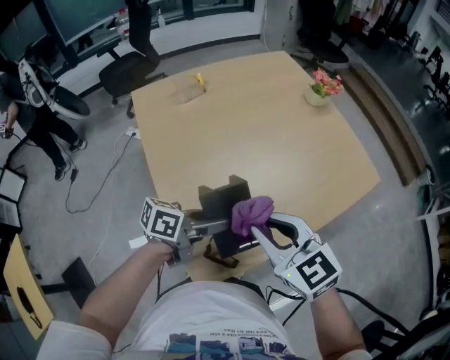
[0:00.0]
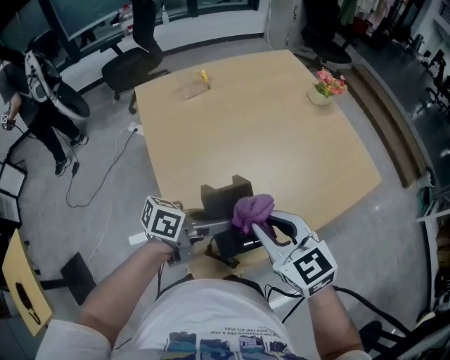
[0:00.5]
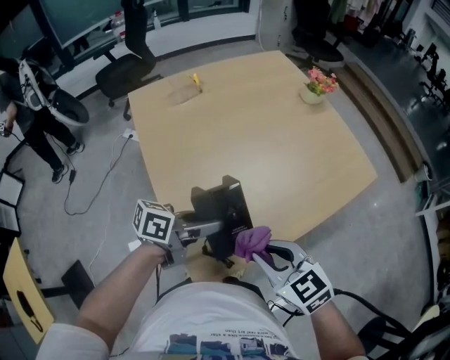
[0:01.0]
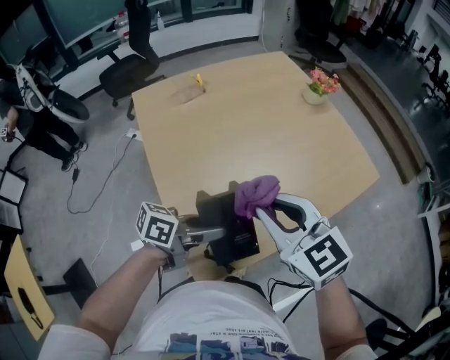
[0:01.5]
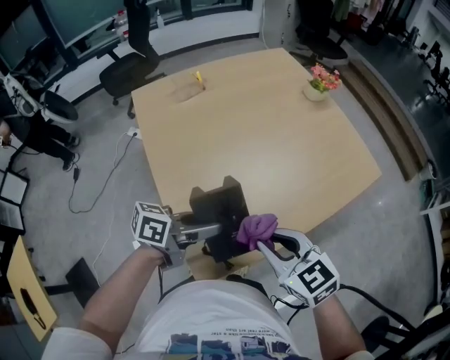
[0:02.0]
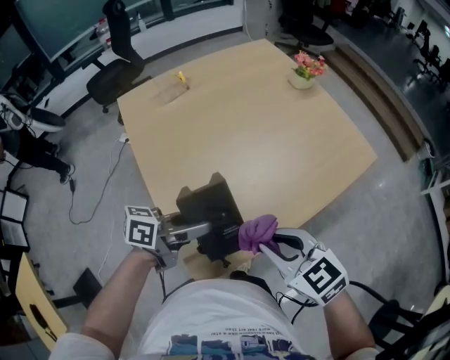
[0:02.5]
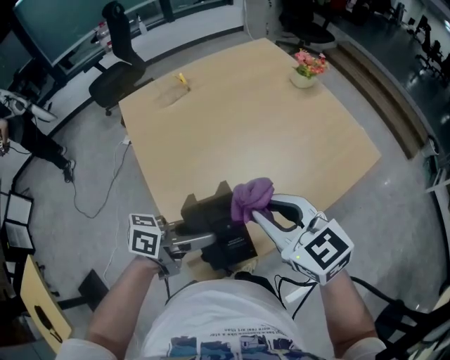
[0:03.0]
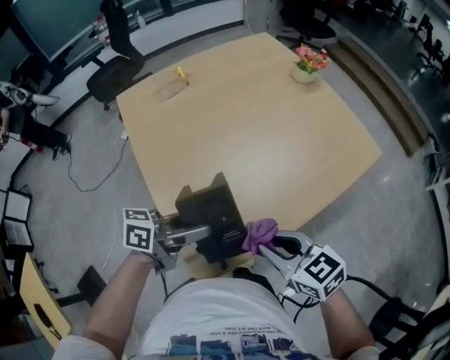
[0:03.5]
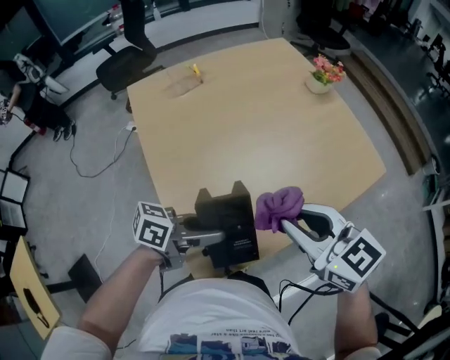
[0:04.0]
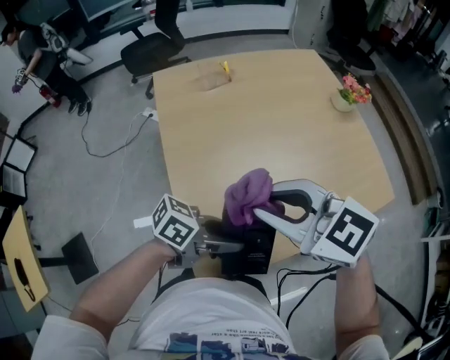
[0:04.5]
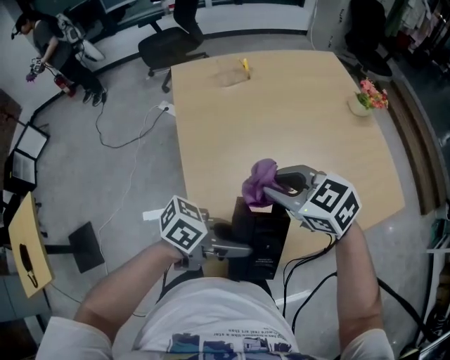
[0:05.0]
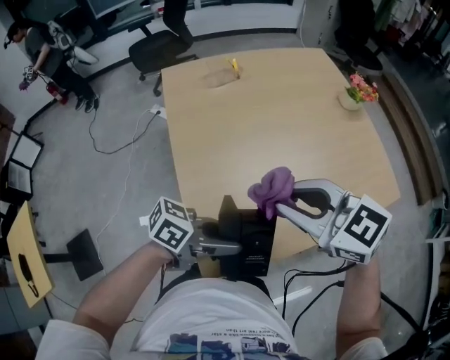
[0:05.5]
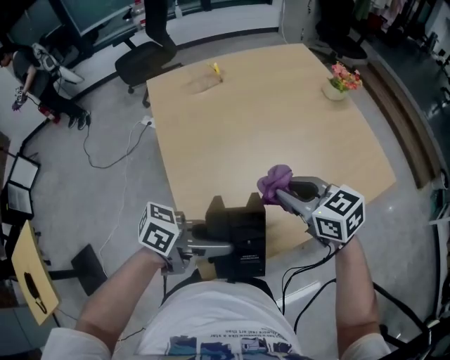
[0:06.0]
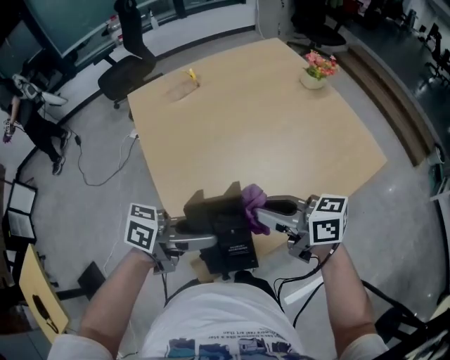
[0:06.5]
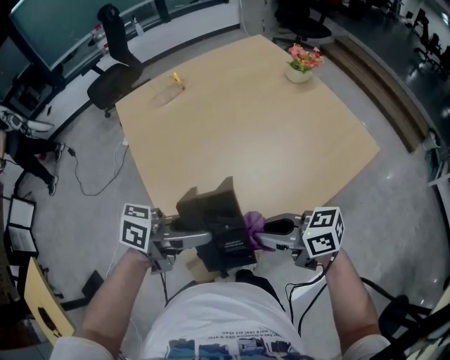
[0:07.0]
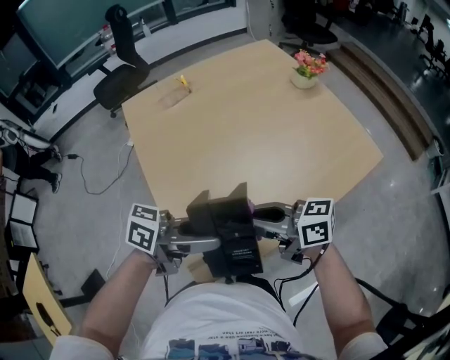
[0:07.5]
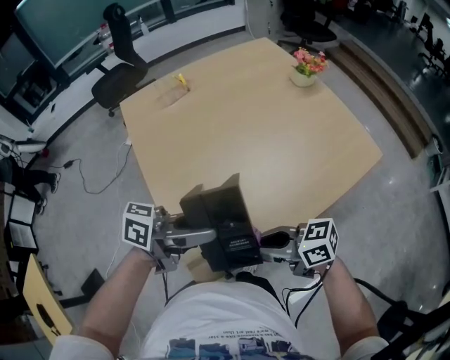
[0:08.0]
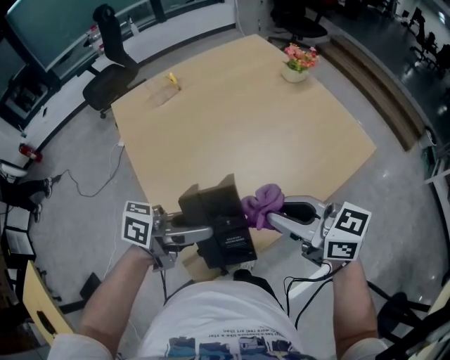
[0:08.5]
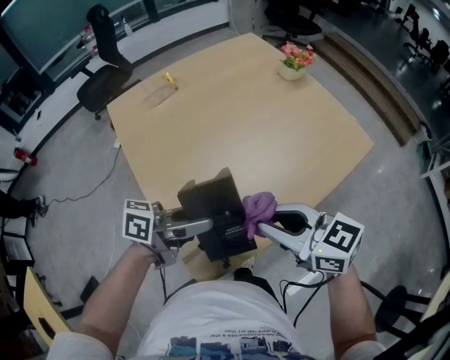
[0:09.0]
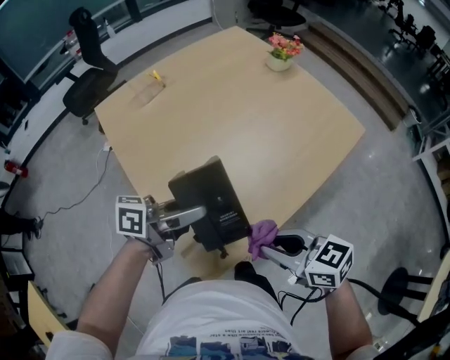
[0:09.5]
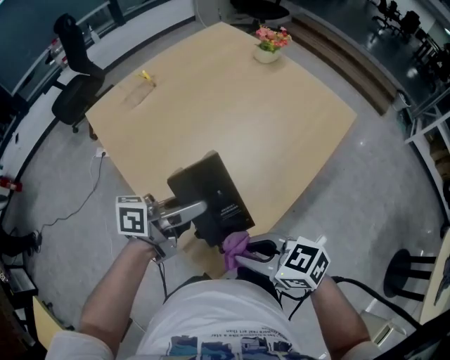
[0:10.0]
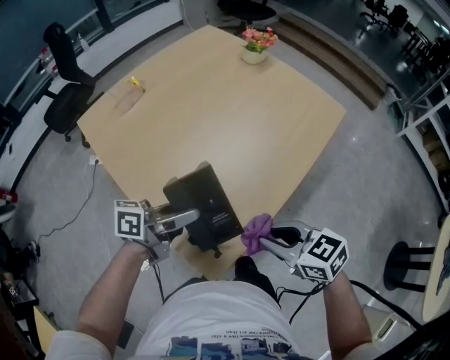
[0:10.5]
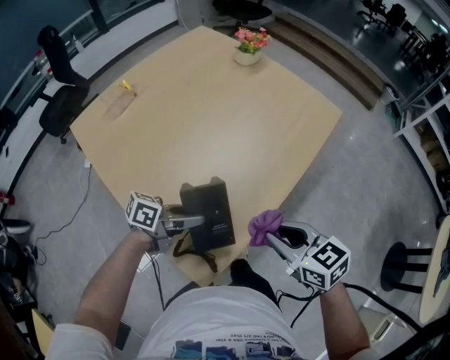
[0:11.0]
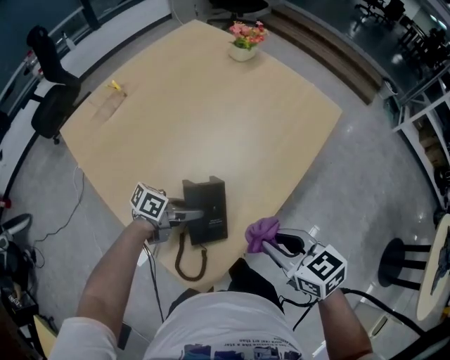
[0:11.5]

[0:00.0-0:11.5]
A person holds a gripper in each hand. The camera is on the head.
0:00.0 to 0:02.0: The right gripper swings up and down, about 10 cm each way, with 2 reversals.
0:02.0 to 0:04.0: The right gripper swings up and down, some 10 cm each way, with 2 reversals.
0:04.0 to 0:06.0: The right gripper moves up and down over roughly 10 cm, changing direction 2 times.
0:06.0 to 0:07.5: The right gripper changes its angle by roughly 40 degrees.
0:07.5 to 0:09.5: The right gripper moves up and down over about 10 cm, changing direction 2 times, and rotates roughly 30 degrees. Meanwhile the left gripper shifts by roughly 5 cm.
0:09.5 to 0:11.5: The left gripper goes some 20 cm downward, and swivels roughly 30 degrees; the right gripper changes its angle by some 20 degrees.

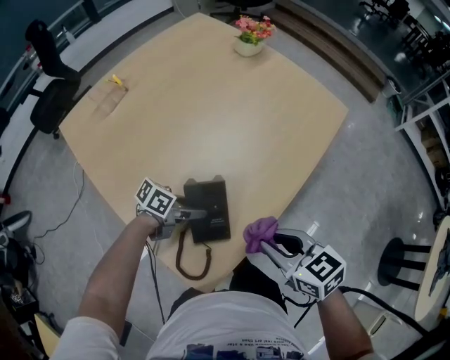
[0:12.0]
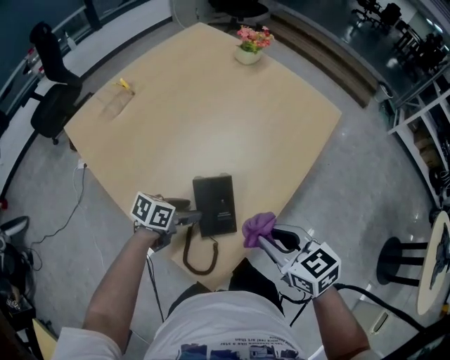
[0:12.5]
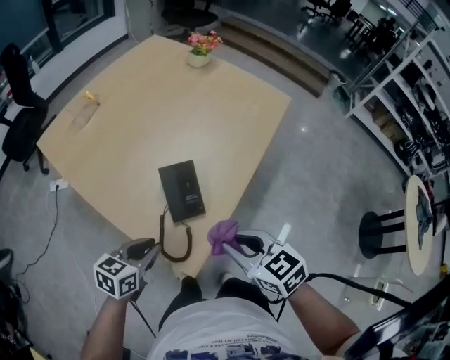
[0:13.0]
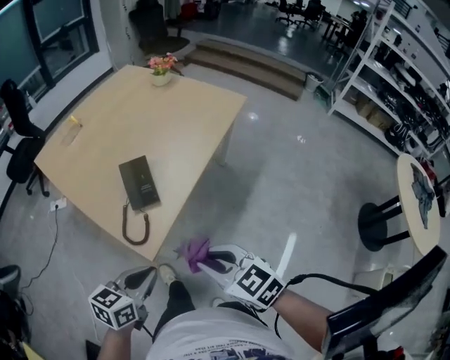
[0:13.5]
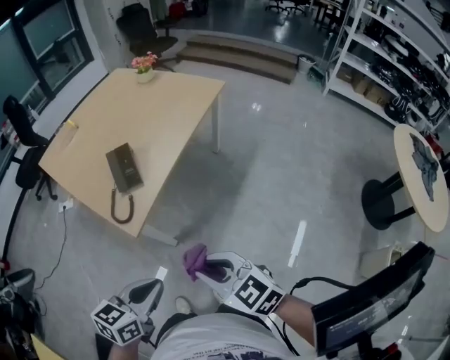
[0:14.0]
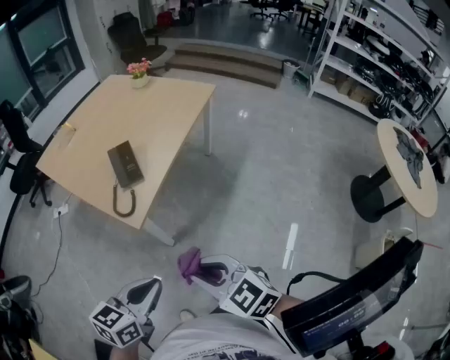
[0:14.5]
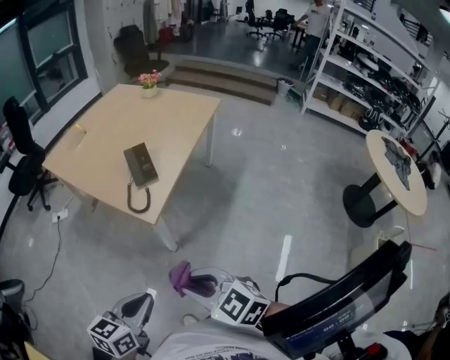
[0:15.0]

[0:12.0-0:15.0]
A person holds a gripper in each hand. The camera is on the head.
0:12.0 to 0:13.5: The right gripper changes place by roughly 20 cm, while the left gripper shifts by about 30 cm, turns by some 40 degrees, and closes up.
0:13.5 to 0:15.0: The left gripper moves backward, roughly 20 cm. Meanwhile the right gripper heads backward and to the left, covering roughly 20 cm.

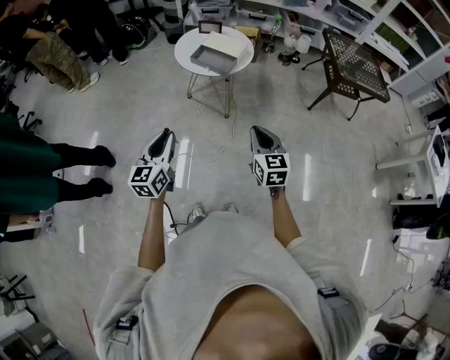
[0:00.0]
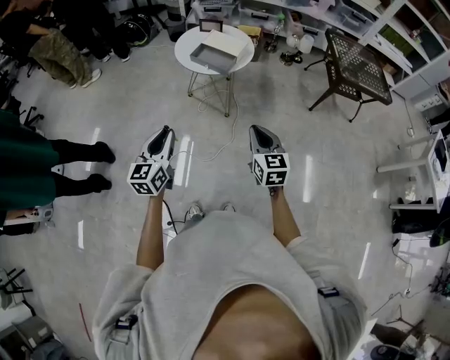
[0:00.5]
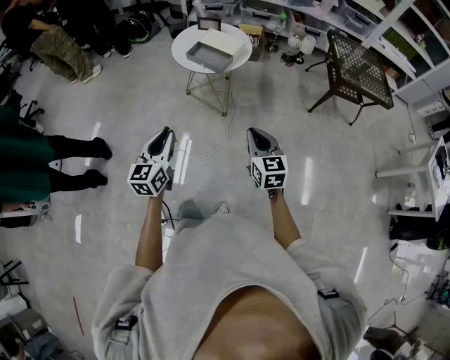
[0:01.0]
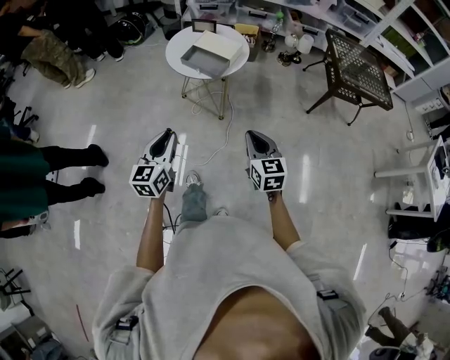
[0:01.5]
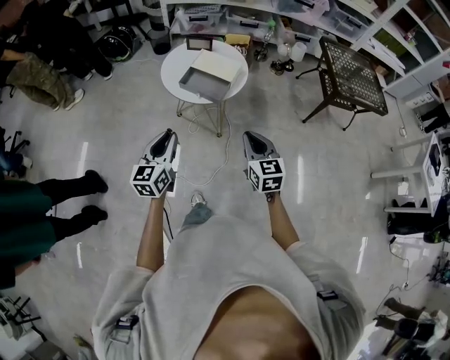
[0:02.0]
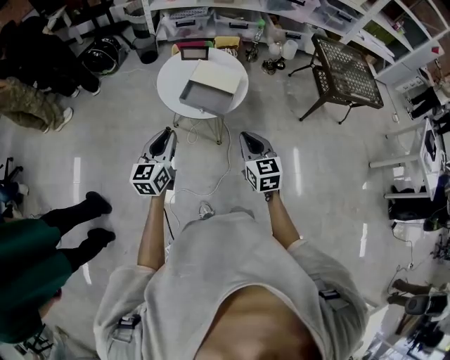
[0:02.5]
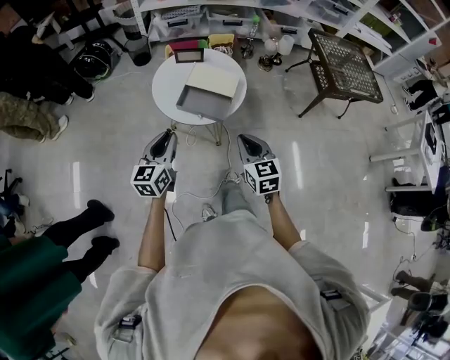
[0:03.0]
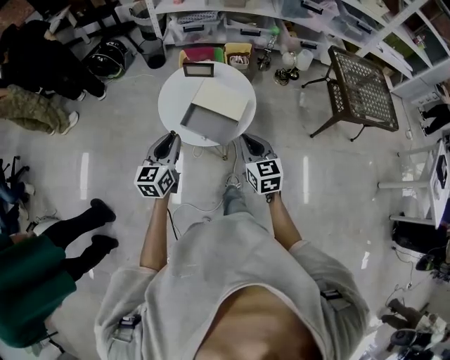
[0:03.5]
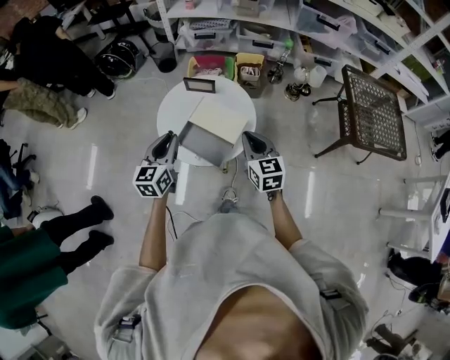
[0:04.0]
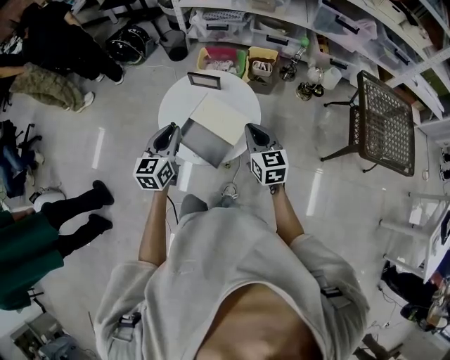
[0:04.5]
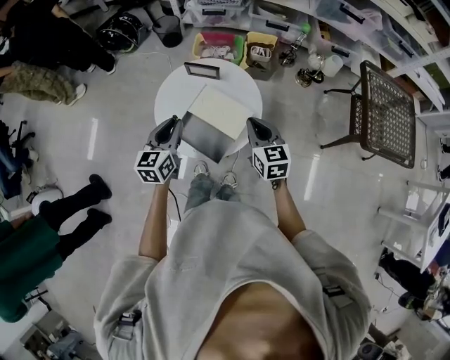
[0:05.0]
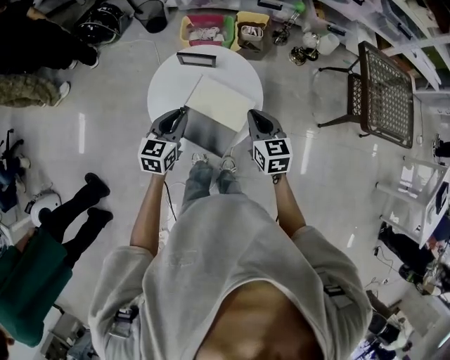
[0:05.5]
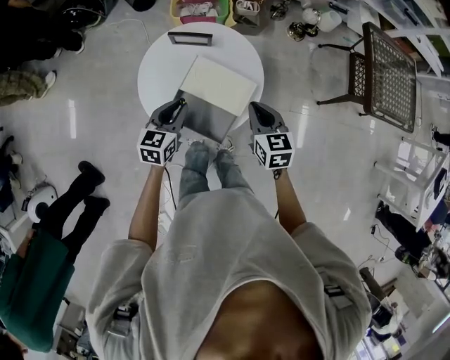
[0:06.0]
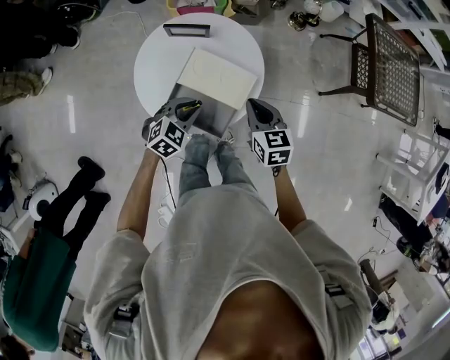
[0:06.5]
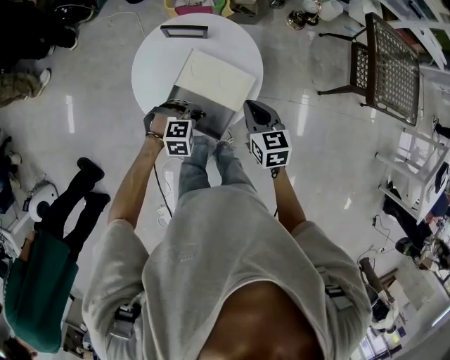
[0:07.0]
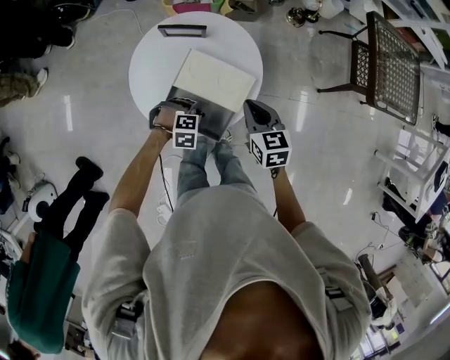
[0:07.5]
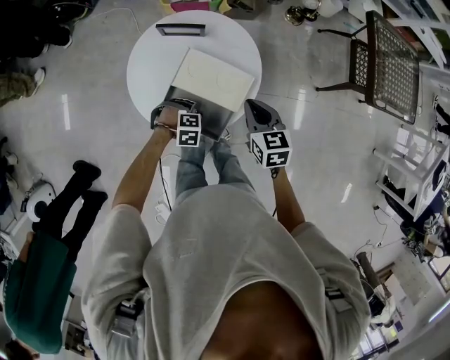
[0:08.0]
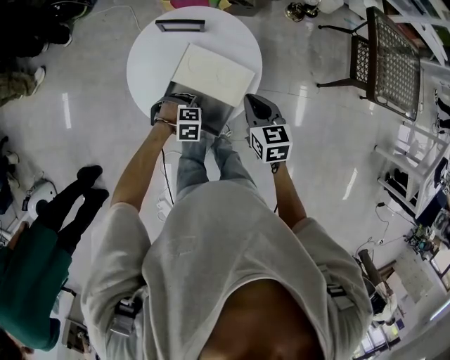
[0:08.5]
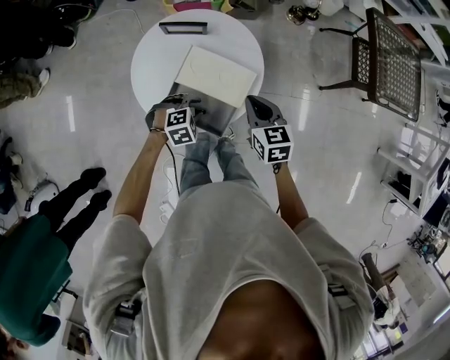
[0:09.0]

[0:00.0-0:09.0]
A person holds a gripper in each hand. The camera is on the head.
0:00.0 to 0:02.0: The two grippers go approximately 20 cm forward.
0:02.0 to 0:04.5: Both grippers travel together forward, about 35 cm.
0:04.5 to 0:07.0: The right gripper is displaced downward by roughly 10 cm. The left gripper moves downward, approximately 25 cm, and points its fingers some 50 degrees further downward.
0:07.0 to 0:09.0: The left gripper reaches roughly 10 cm downward, then returns.

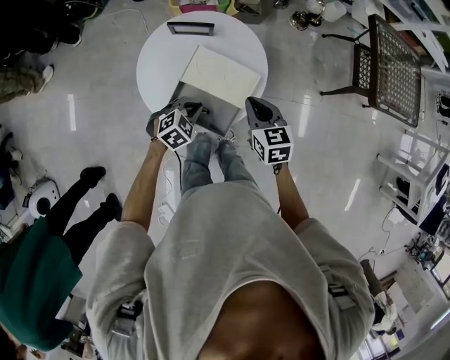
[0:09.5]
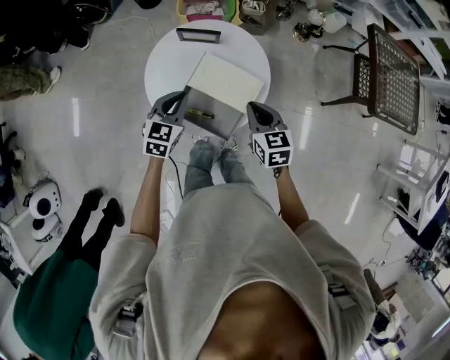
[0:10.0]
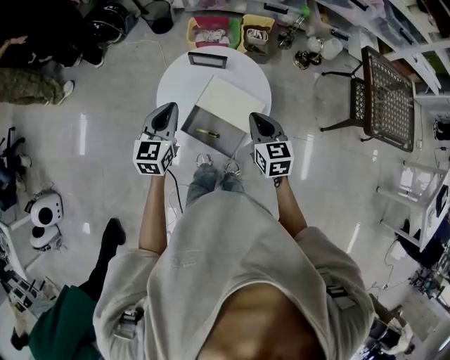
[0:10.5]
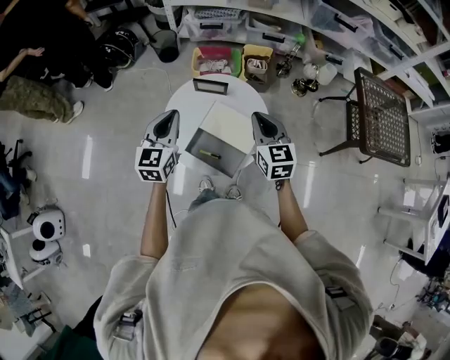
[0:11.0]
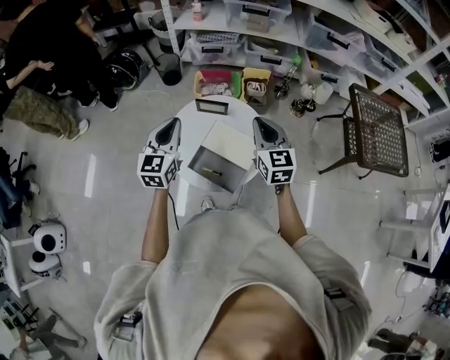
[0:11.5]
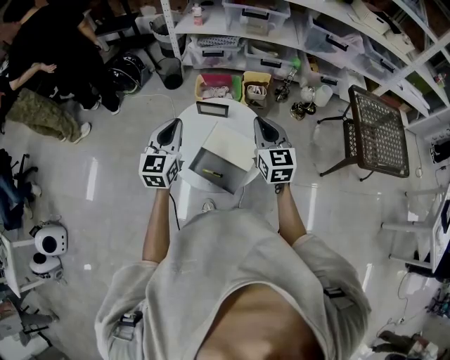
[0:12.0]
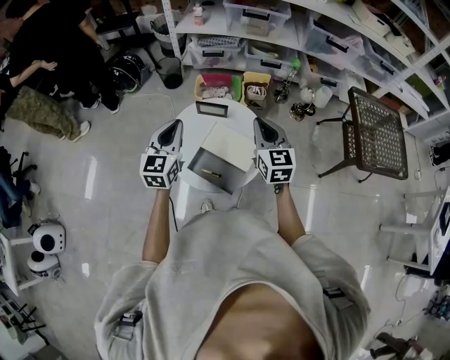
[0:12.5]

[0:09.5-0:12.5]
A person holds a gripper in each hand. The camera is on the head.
0:09.5 to 0:11.0: The right gripper heads upward and forward, covering approximately 15 cm, and turns by approximately 20 degrees. The left gripper shifts roughly 30 cm upward and to the left, and tilts its fingers some 40 degrees upward.
0:11.0 to 0:12.5: The right gripper ends up about 5 cm from where it was.
